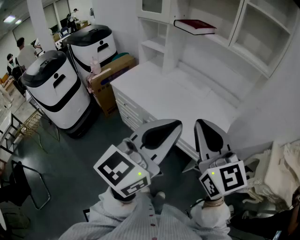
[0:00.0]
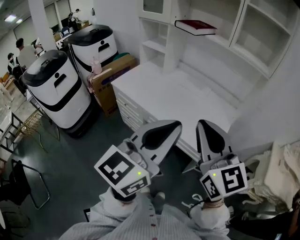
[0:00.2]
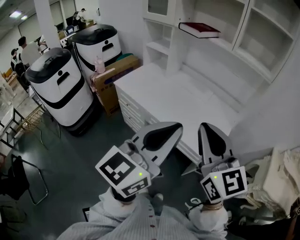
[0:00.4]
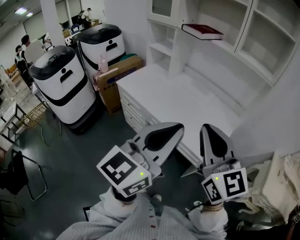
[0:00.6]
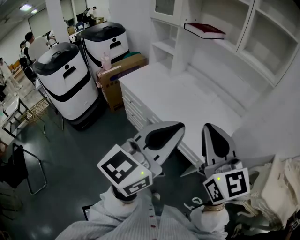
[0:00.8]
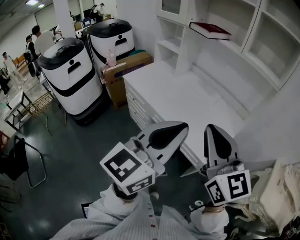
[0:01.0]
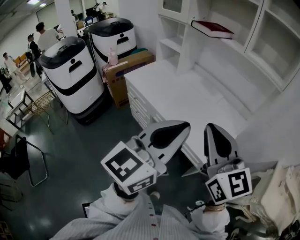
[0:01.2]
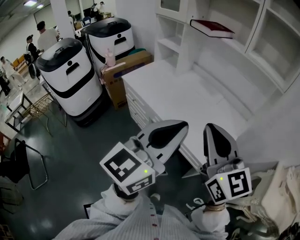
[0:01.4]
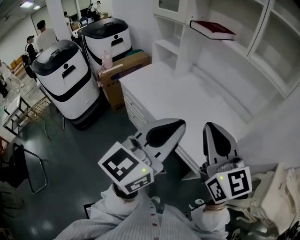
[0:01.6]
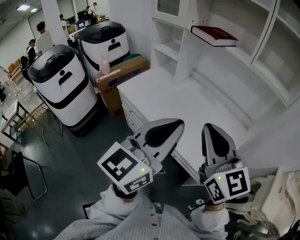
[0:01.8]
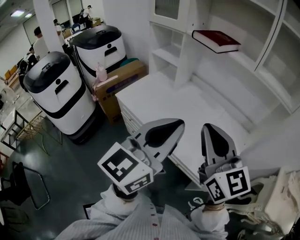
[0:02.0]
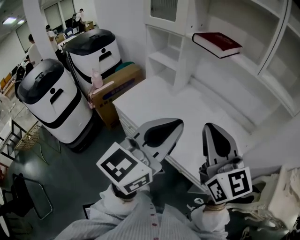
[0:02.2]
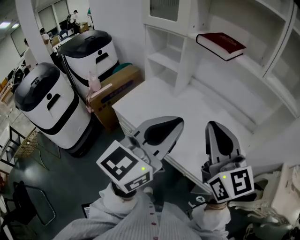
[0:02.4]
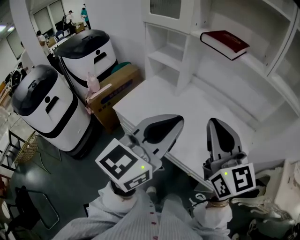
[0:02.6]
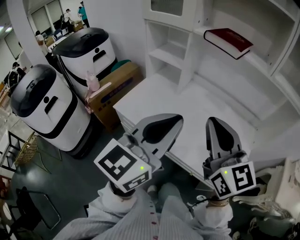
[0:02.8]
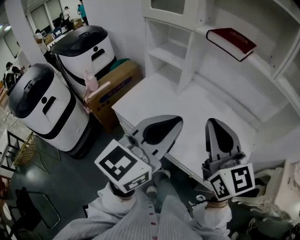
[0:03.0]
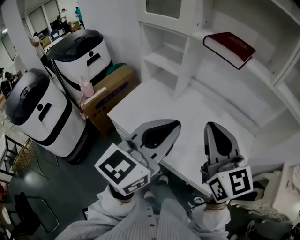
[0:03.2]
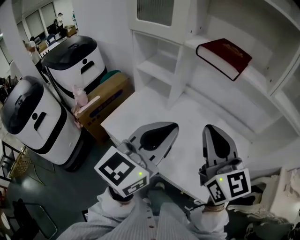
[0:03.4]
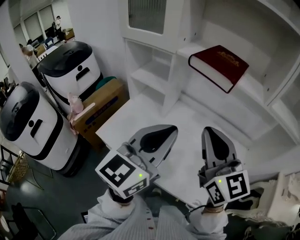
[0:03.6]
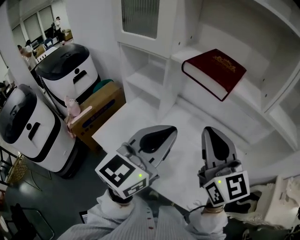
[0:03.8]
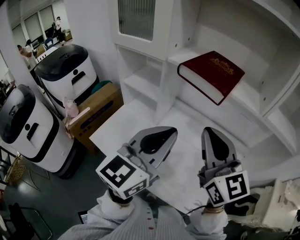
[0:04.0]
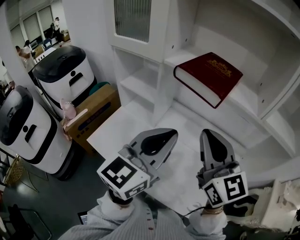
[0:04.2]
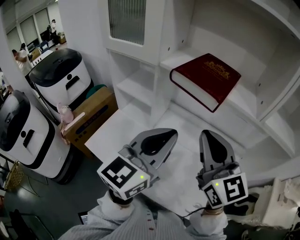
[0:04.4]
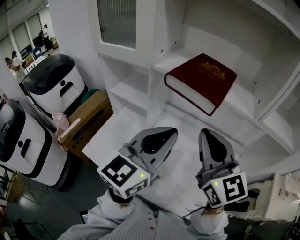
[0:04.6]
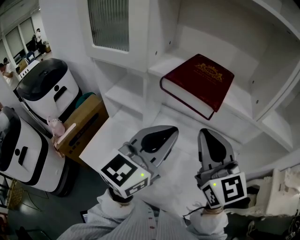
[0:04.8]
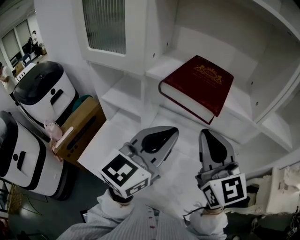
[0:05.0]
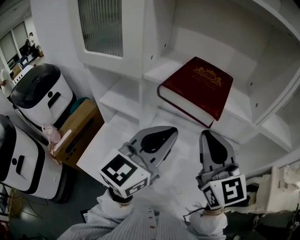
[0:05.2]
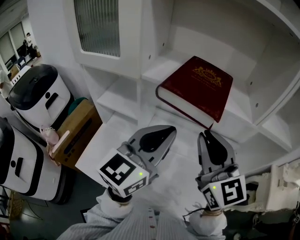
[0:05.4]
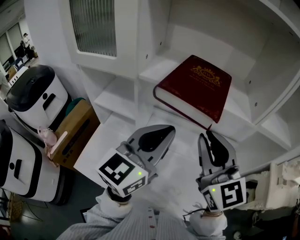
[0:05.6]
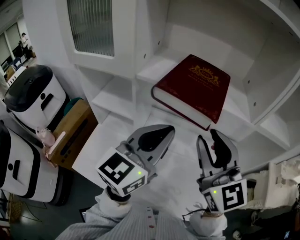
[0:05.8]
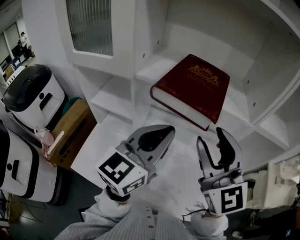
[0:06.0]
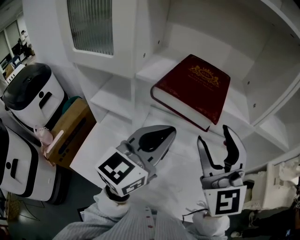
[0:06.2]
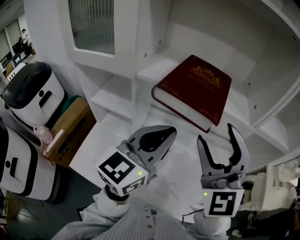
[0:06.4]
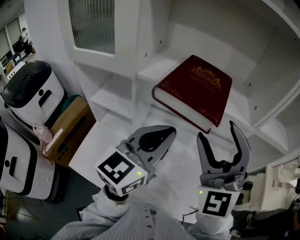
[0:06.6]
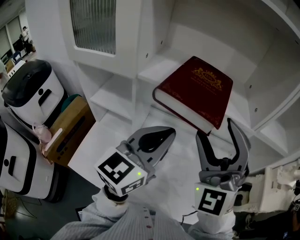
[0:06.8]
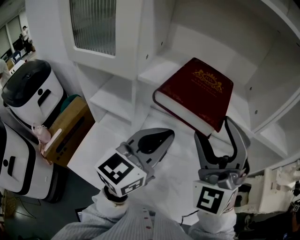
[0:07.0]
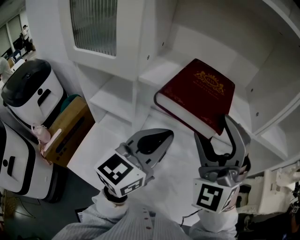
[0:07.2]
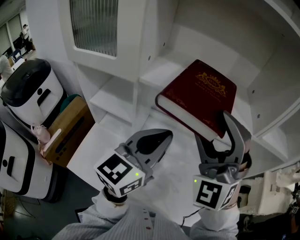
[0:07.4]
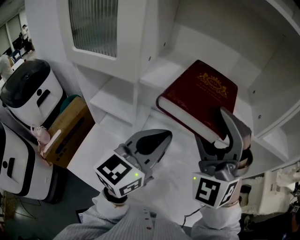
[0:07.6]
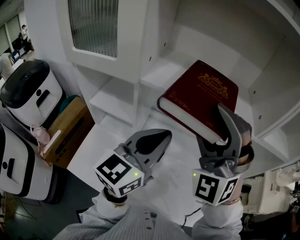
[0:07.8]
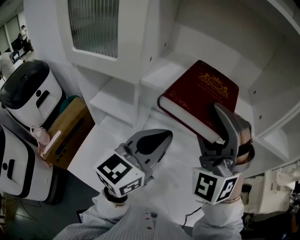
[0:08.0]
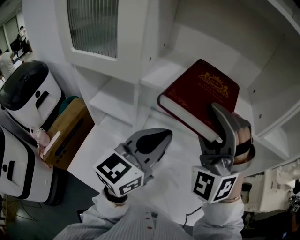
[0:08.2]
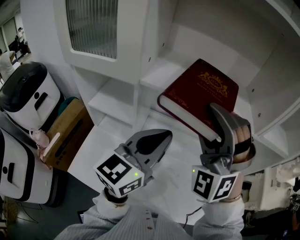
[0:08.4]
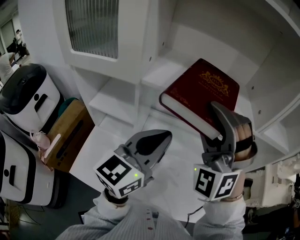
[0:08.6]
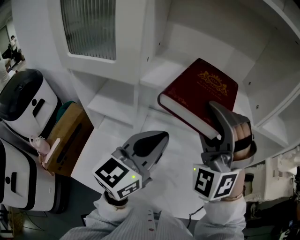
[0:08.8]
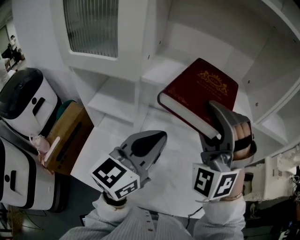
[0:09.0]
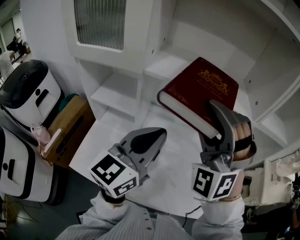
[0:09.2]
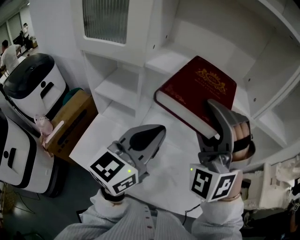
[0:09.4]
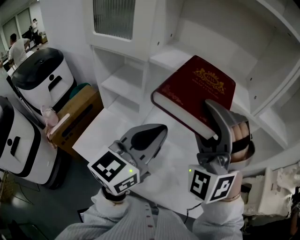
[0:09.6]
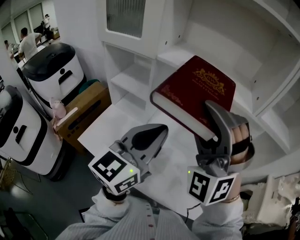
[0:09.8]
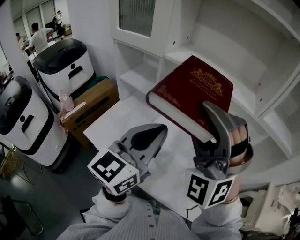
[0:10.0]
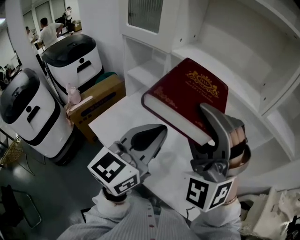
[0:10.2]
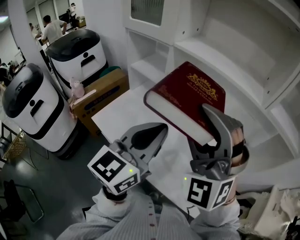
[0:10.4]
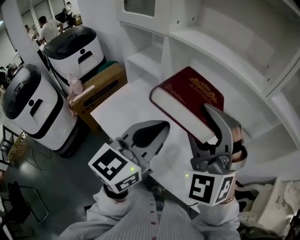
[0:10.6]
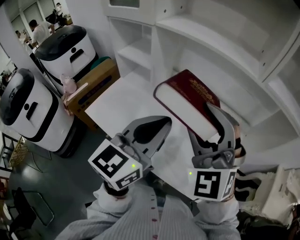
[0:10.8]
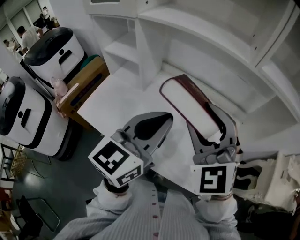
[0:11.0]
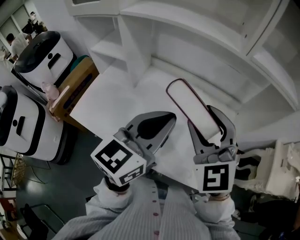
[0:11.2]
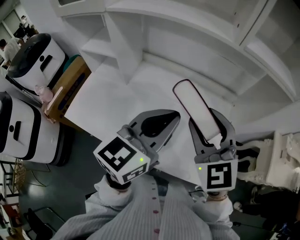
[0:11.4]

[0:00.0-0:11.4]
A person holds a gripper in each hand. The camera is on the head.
0:00.0 to 0:01.4: The left gripper ends up approximately 5 cm from where it was. The right gripper moves approximately 5 cm.
0:01.4 to 0:02.8: Both grippers travel together forward and to the left, about 30 cm.
0:02.8 to 0:04.2: The two grippers go some 20 cm forward.
0:04.2 to 0:05.6: The left gripper moves forward, roughly 10 cm; the right gripper goes some 5 cm forward.
0:05.6 to 0:07.2: The right gripper rolls counterclockwise, seen from behind, by about 60 degrees, and opens up.
0:07.2 to 0:08.6: The grippers stay close to where they were, moving slightly.
0:08.6 to 0:10.0: Both grippers move backward, about 15 cm. The right gripper rotates approximately 20 degrees. Meanwhile the left gripper swivels about 20 degrees.
0:10.0 to 0:11.4: Both grippers travel together to the right and downward, approximately 20 cm. The left gripper swivels about 20 degrees. Meanwhile the right gripper rolls clockwise, seen from behind, by approximately 50 degrees.

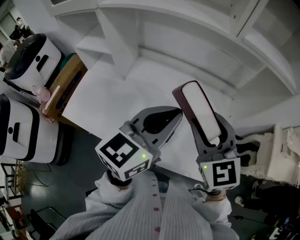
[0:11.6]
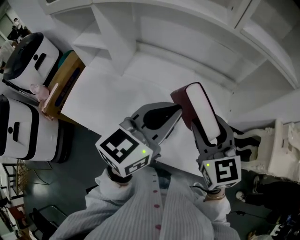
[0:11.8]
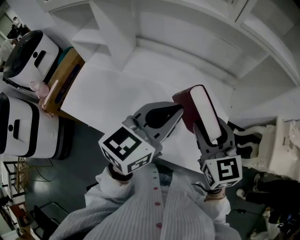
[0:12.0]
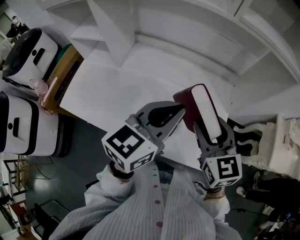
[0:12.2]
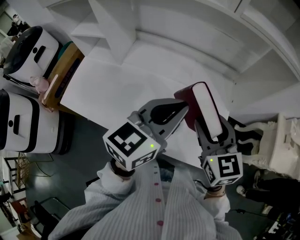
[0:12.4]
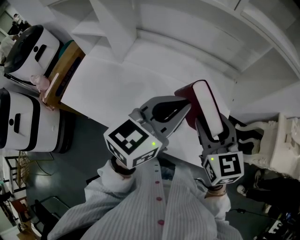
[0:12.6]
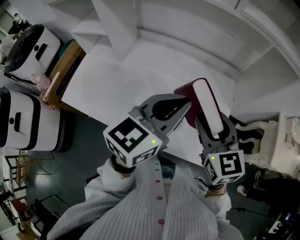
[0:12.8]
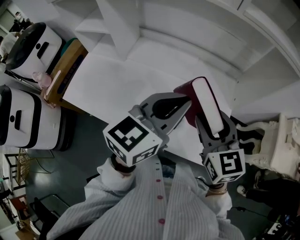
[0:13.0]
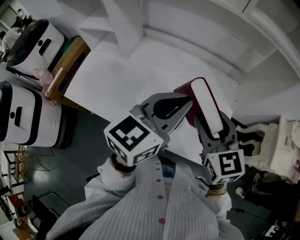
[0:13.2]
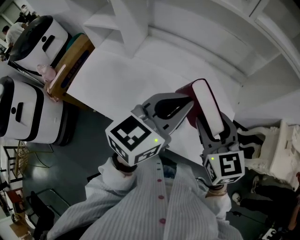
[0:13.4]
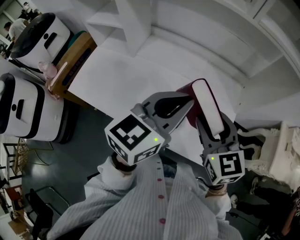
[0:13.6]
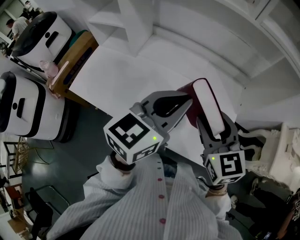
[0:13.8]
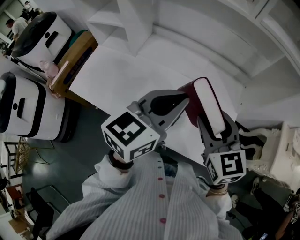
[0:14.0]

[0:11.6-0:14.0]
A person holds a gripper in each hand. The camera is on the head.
0:11.6 to 0:12.8: The right gripper goes approximately 10 cm downward and to the right, while the left gripper moves roughly 5 cm.
0:12.8 to 0:14.0: The grippers make only small movements.

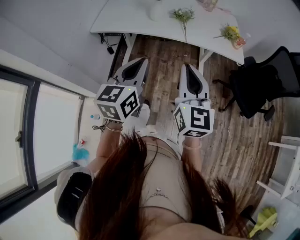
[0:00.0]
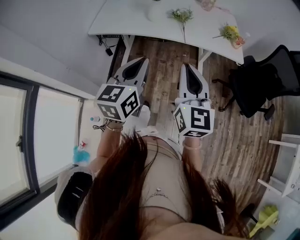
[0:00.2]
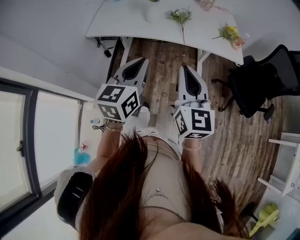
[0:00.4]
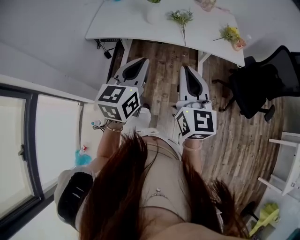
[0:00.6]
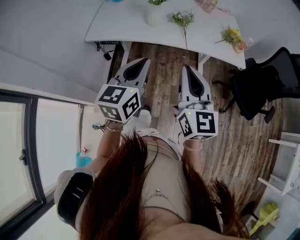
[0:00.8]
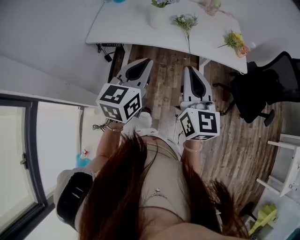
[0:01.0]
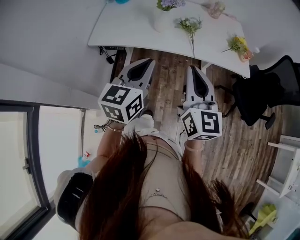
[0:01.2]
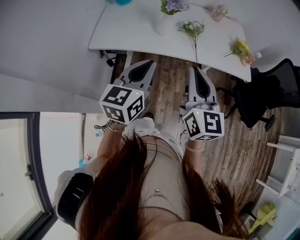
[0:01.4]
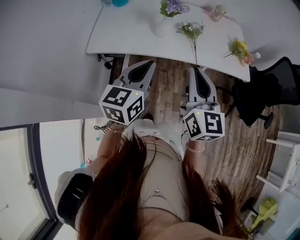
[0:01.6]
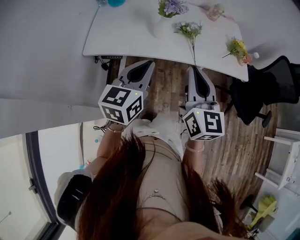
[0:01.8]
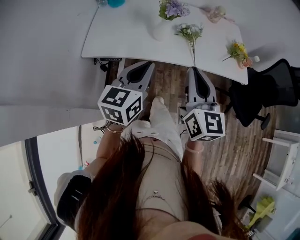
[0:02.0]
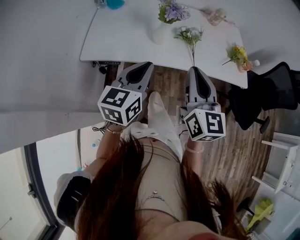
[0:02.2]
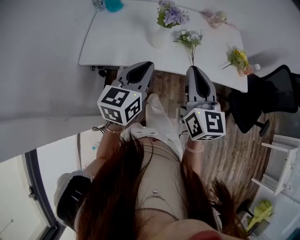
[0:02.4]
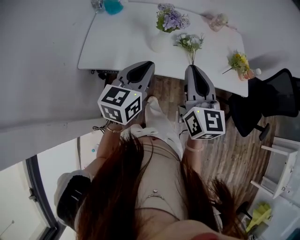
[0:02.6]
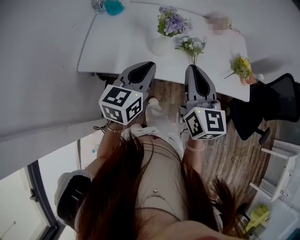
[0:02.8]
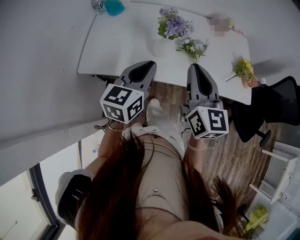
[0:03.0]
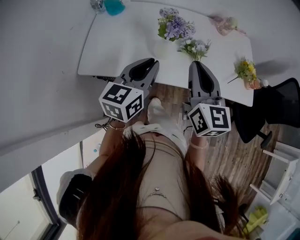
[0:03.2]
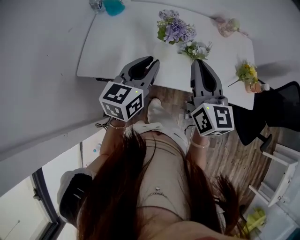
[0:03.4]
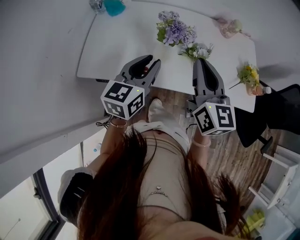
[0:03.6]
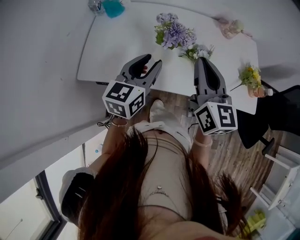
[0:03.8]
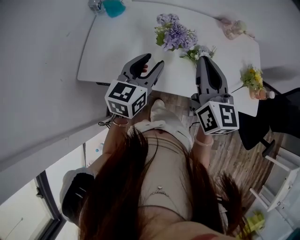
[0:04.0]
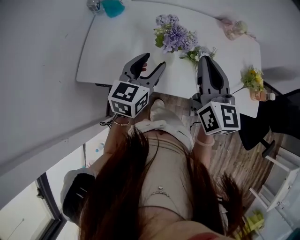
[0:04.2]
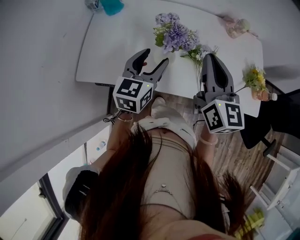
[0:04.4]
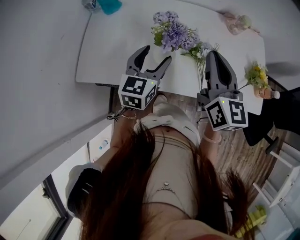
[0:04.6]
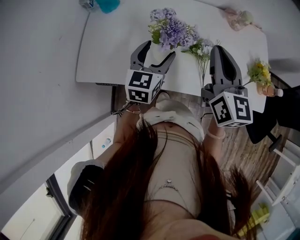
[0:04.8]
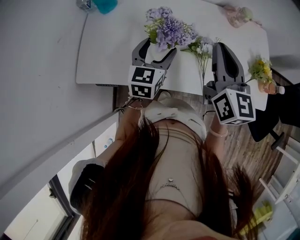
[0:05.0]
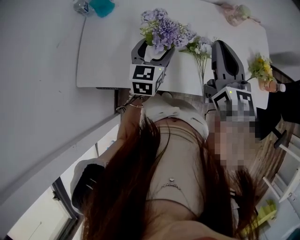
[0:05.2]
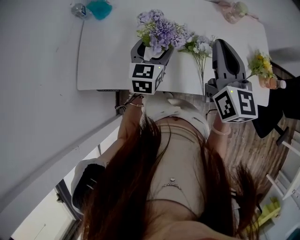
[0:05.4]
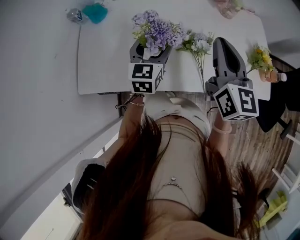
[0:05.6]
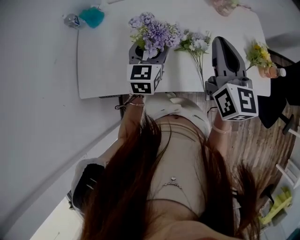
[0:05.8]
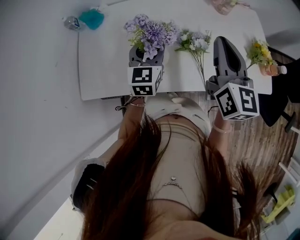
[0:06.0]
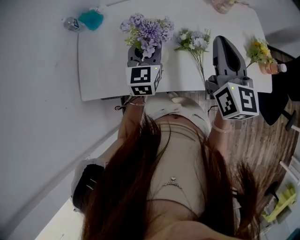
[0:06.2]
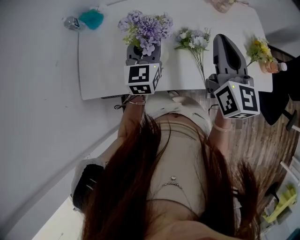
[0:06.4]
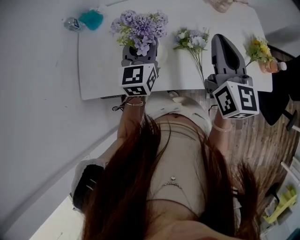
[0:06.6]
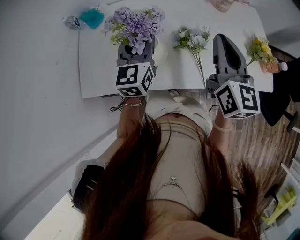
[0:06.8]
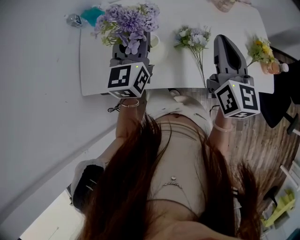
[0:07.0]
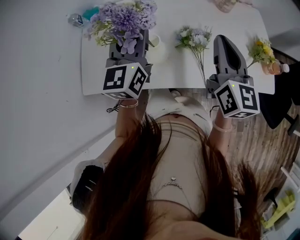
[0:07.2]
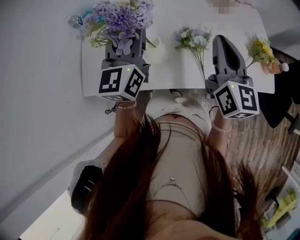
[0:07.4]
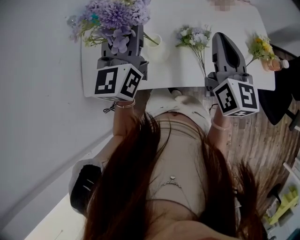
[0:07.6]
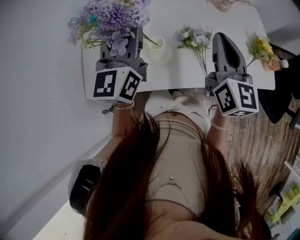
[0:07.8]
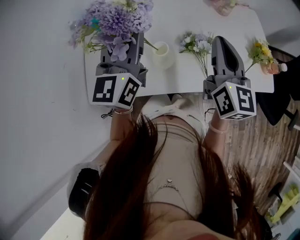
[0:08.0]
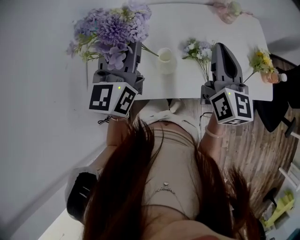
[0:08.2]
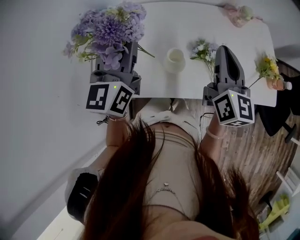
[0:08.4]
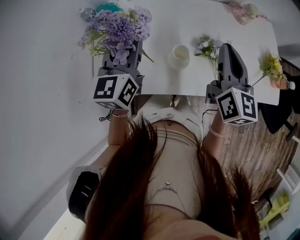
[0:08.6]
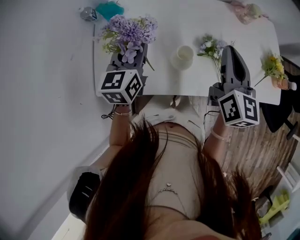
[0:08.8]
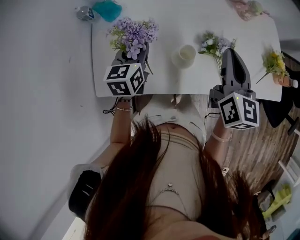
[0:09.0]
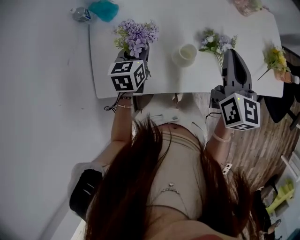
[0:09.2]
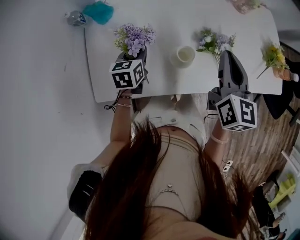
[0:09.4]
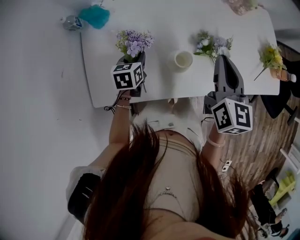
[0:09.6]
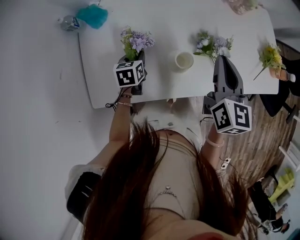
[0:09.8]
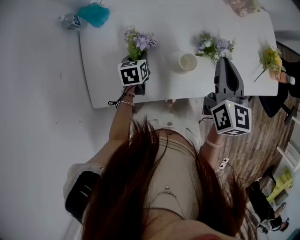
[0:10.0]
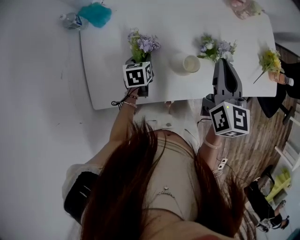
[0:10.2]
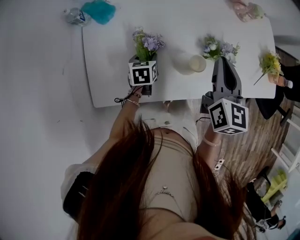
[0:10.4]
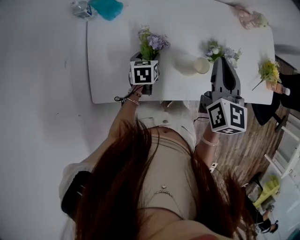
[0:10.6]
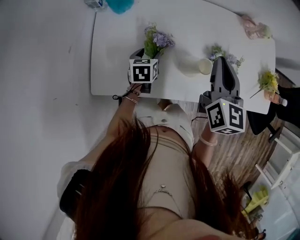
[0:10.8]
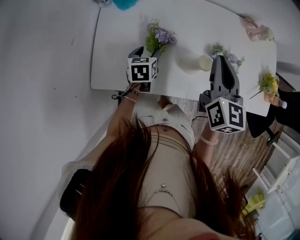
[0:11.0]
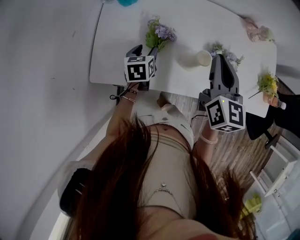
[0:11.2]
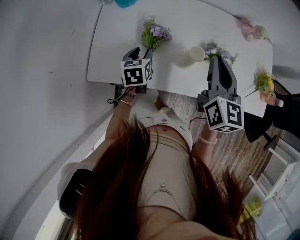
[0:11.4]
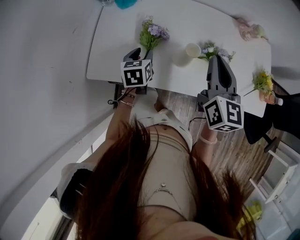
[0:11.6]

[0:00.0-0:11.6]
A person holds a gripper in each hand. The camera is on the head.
0:00.0 to 0:01.4: The grippers both shift forward and to the left by about 20 cm.
0:01.4 to 0:02.8: Both grippers travel together forward, about 15 cm.
0:02.8 to 0:04.4: The right gripper shifts approximately 15 cm forward; the left gripper goes some 15 cm forward and downward, and opens its fingers.
0:04.4 to 0:05.8: The right gripper heads to the right, covering about 5 cm. Meanwhile the left gripper travels forward by approximately 10 cm.
0:05.8 to 0:07.2: The left gripper is displaced upward by about 15 cm, and closes up.
0:07.2 to 0:08.8: The right gripper shifts approximately 10 cm to the left; the left gripper is displaced to the left and downward by roughly 15 cm.
0:08.8 to 0:10.2: The left gripper goes some 25 cm downward, and tilts its fingers about 30 degrees downward. Meanwhile the right gripper moves about 5 cm.
0:10.2 to 0:11.6: The left gripper heads upward and backward, covering roughly 10 cm. The right gripper changes place by approximately 5 cm.
